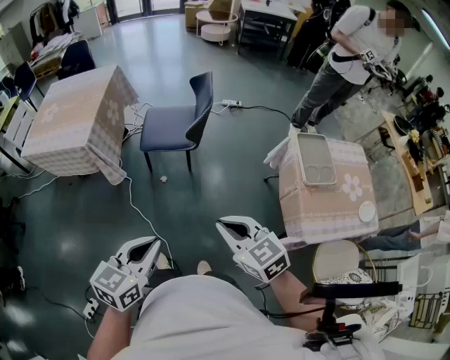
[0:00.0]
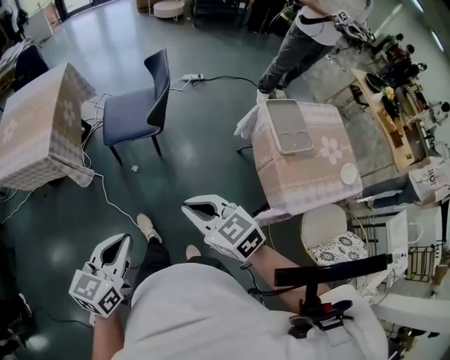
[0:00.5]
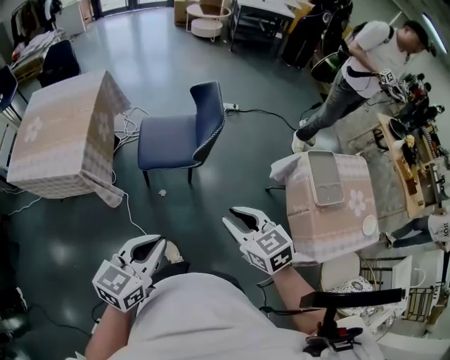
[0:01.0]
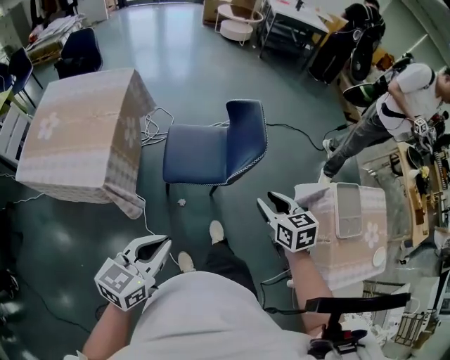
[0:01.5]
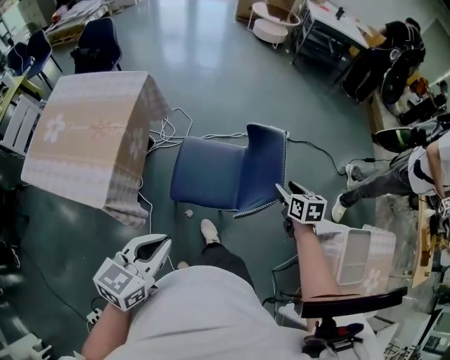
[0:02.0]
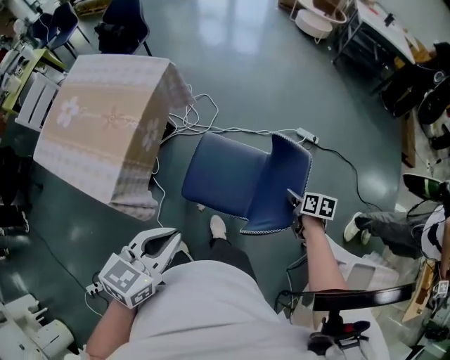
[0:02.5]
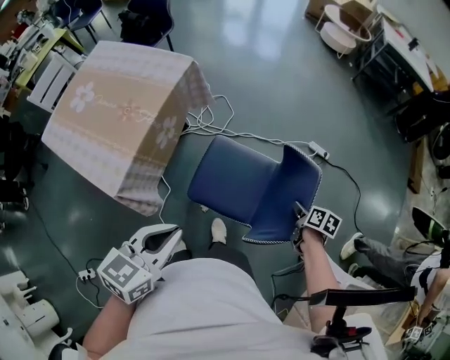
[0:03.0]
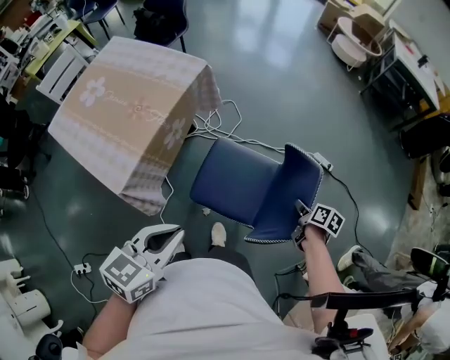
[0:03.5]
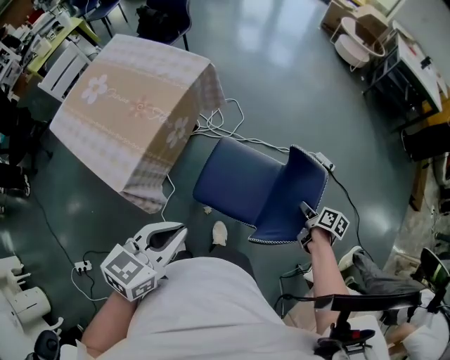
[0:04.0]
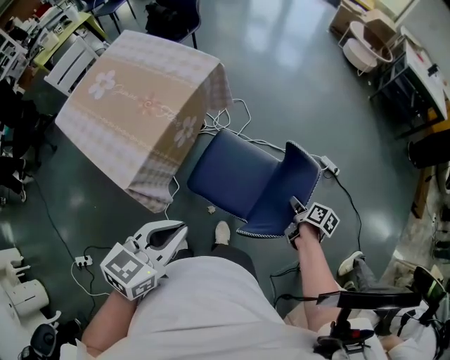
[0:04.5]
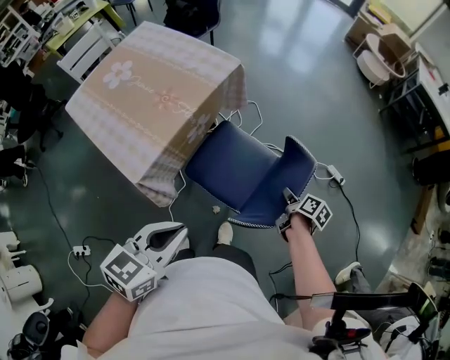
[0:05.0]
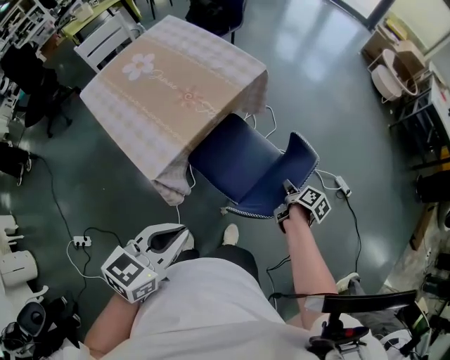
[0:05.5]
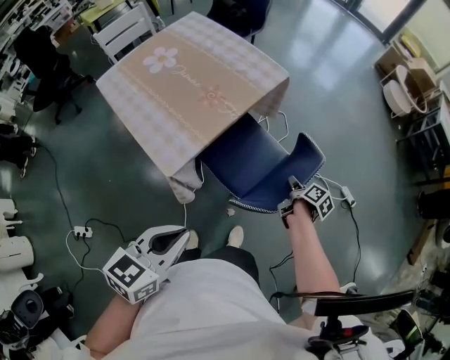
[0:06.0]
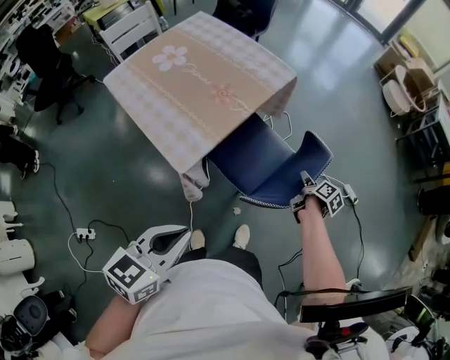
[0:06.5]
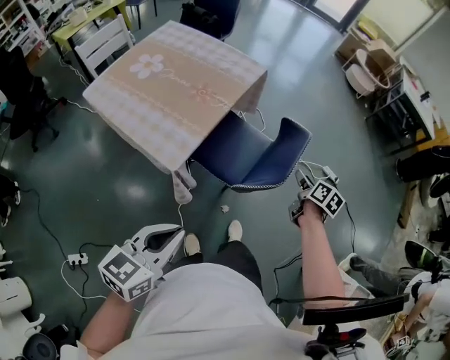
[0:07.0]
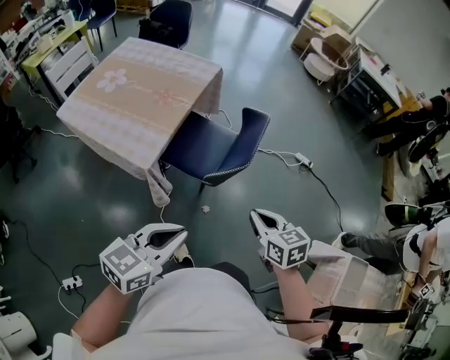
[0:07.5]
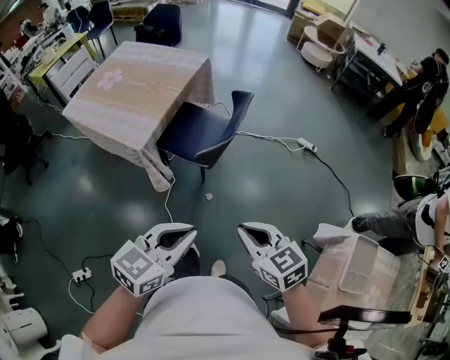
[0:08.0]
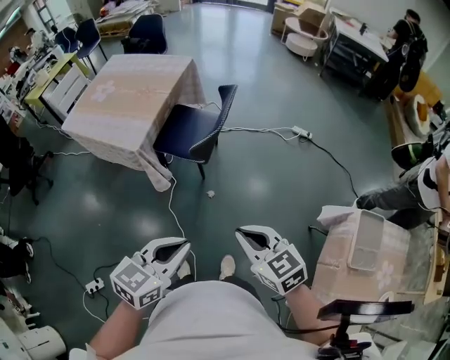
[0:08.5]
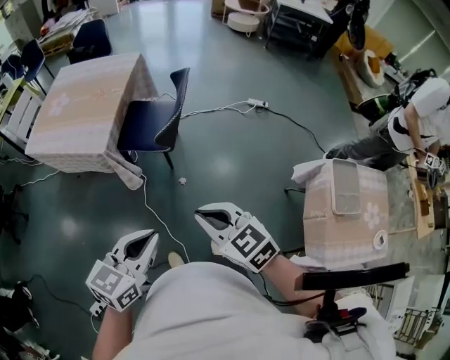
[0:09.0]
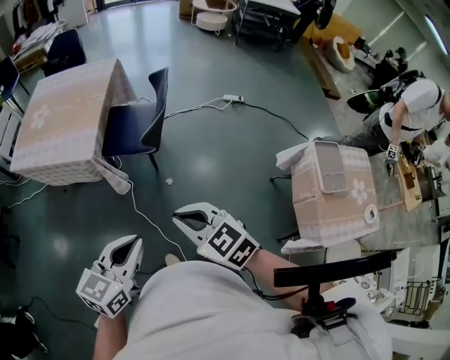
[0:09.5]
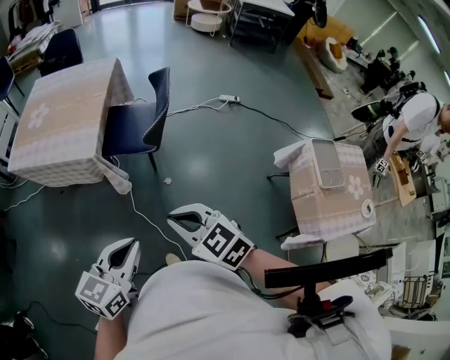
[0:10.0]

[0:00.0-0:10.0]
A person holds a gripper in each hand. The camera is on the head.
0.0 to 2.0 s: The pair of grippers is taken forward, about 50 cm. The right gripper swivels about 30 degrees, and opens up.
2.0 to 4.0 s: The left gripper is displaced forward by some 10 cm; the right gripper goes approximately 20 cm forward and downward, changes its angle by approximately 30 degrees, and closes its fingers.
4.0 to 6.0 s: The left gripper goes some 15 cm to the left. The right gripper travels to the left by about 30 cm.
6.0 to 8.0 s: The left gripper shifts approximately 25 cm backward and to the right, and changes its angle by about 30 degrees, while the right gripper moves backward and upward, roughly 60 cm, twists roughly 70 degrees counterclockwise, seen from behind, and opens and closes again.
8.0 to 10.0 s: The grippers both shift to the left and backward by about 20 cm.

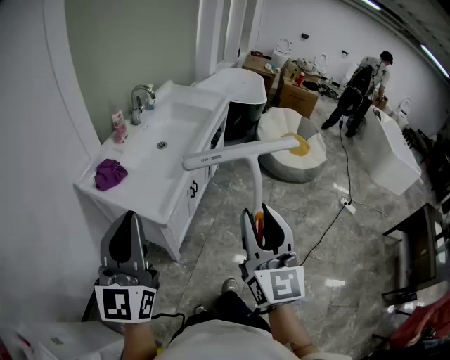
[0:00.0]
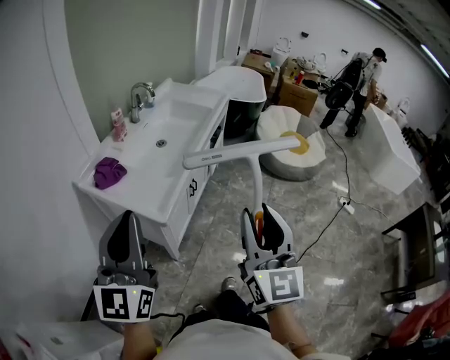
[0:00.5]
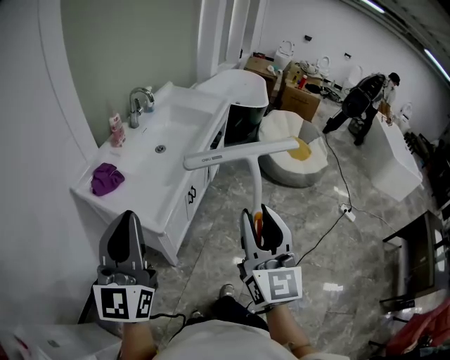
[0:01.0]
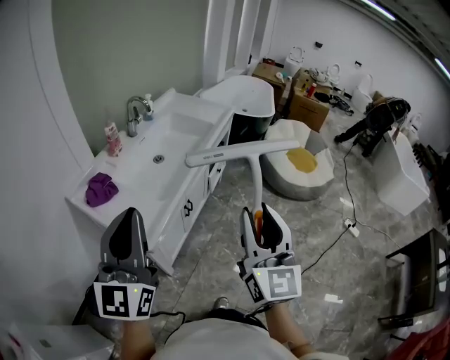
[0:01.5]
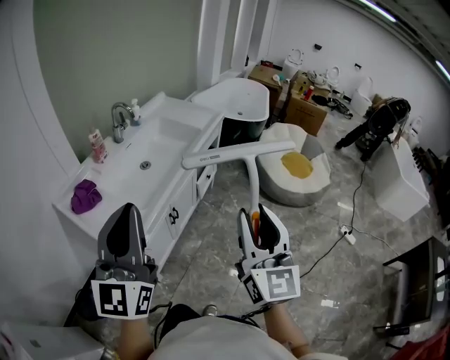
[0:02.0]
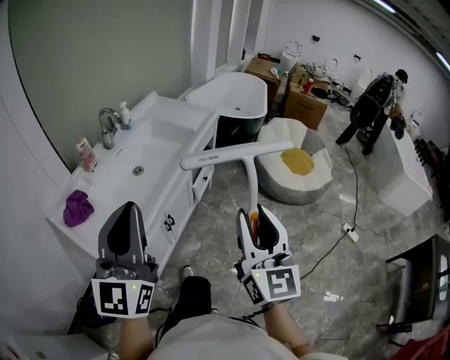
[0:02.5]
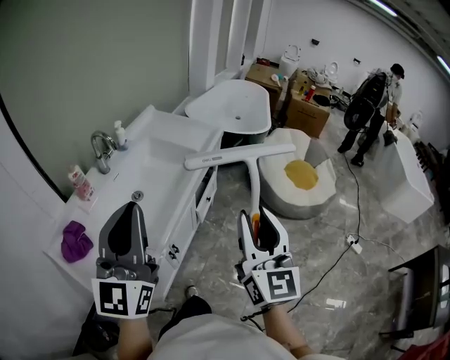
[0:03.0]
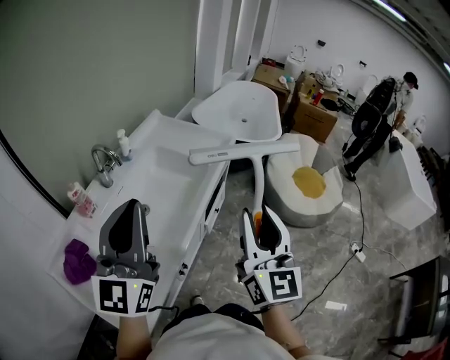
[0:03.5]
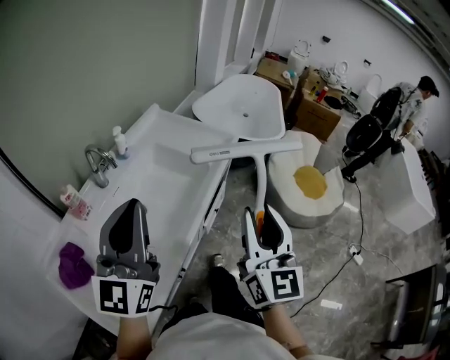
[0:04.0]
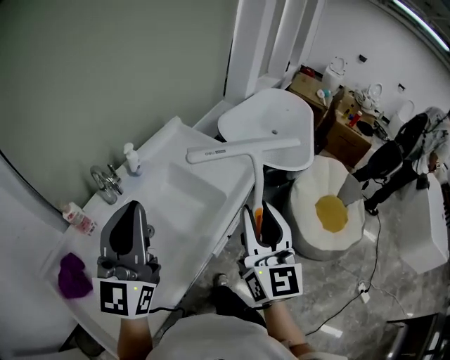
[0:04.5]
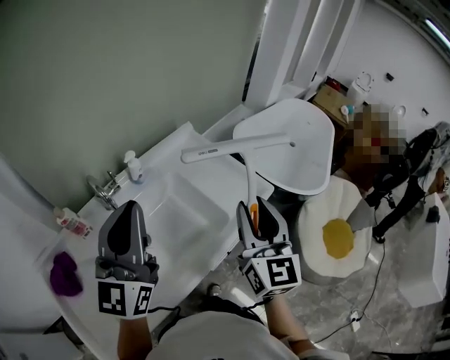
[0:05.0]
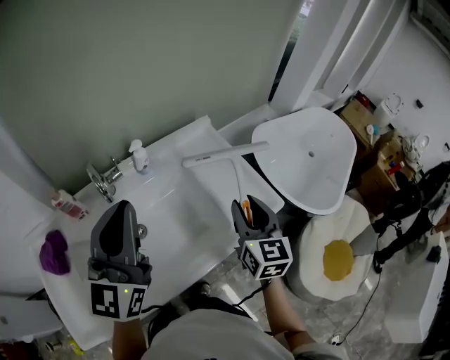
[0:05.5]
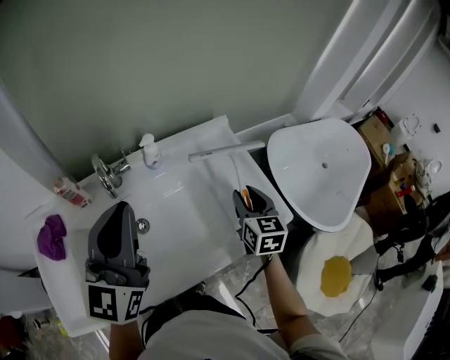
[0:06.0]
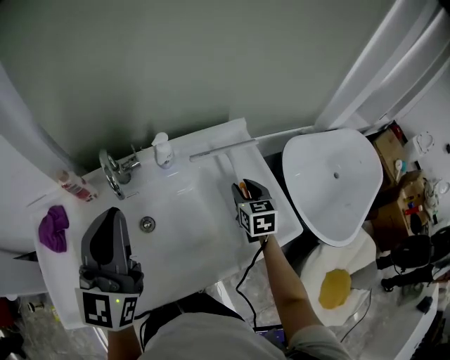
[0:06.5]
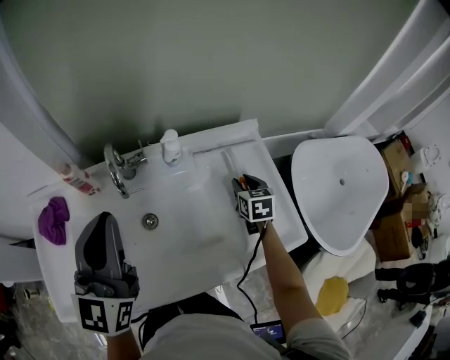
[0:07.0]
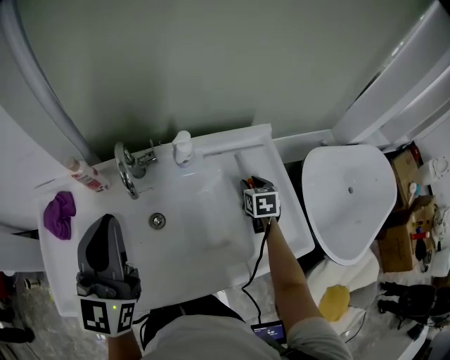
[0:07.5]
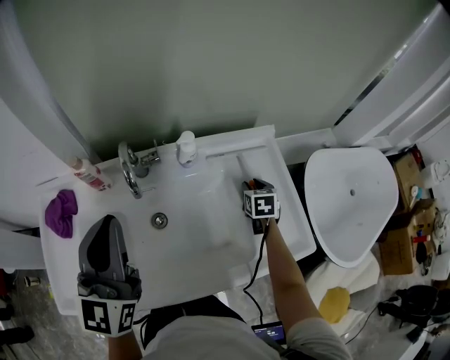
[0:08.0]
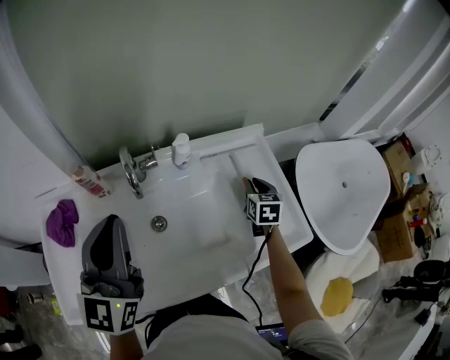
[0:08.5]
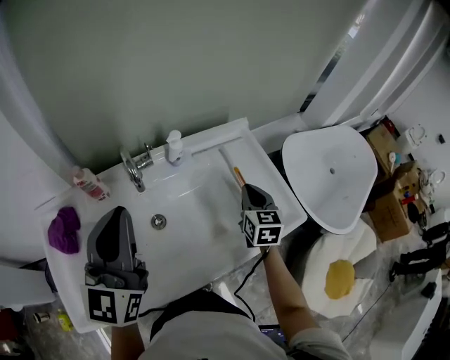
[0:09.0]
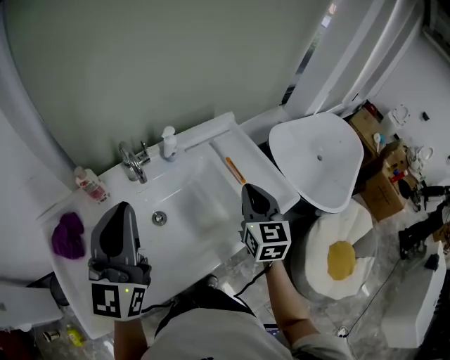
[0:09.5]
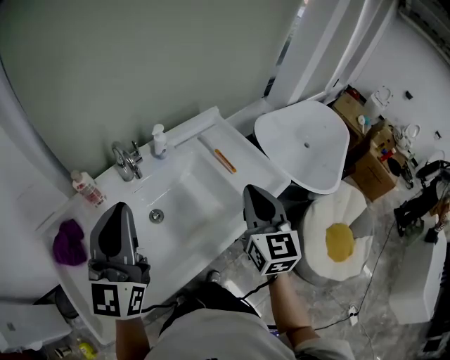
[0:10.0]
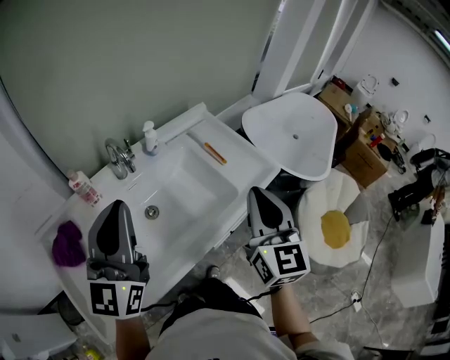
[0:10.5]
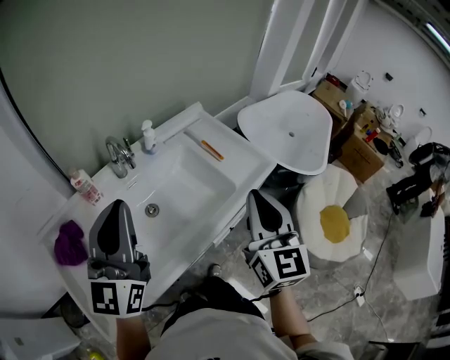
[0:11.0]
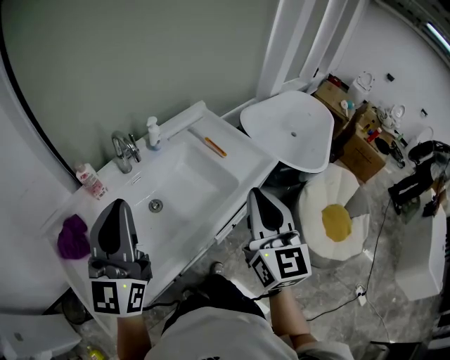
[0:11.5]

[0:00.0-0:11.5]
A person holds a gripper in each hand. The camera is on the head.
0.0 to 2.0 s: Both grippers move forward and to the right, some 20 cm.
2.0 to 4.0 s: Both grippers travel together forward, about 35 cm.
4.0 to 6.0 s: The right gripper ends up approximately 50 cm from where it was, and tilts its fingers approximately 30 degrees downward. The left gripper changes place by roughly 20 cm, and rotates some 40 degrees.
6.0 to 7.5 s: The right gripper shifts approximately 20 cm forward and downward, and swivels roughly 20 degrees. The left gripper is displaced to the left by roughly 5 cm.
7.5 to 9.5 s: The left gripper heads backward, covering roughly 5 cm. The right gripper travels backward and upward by about 30 cm, points its fingers about 30 degrees further upward, and closes its fingers.
9.5 to 11.5 s: The right gripper heads backward and upward, covering about 25 cm. The left gripper heads backward, covering roughly 10 cm.

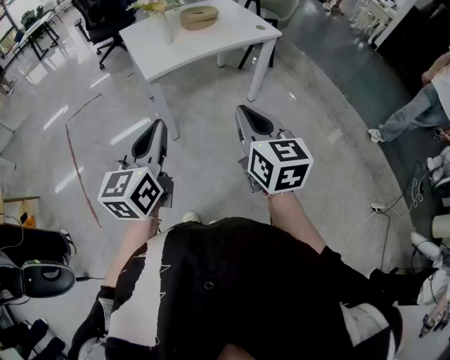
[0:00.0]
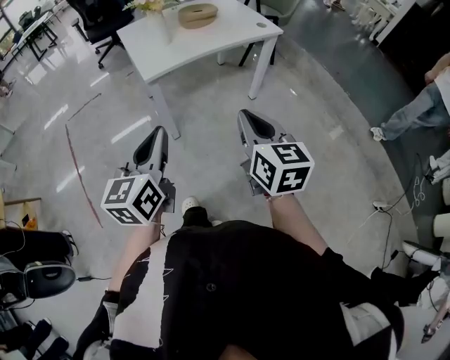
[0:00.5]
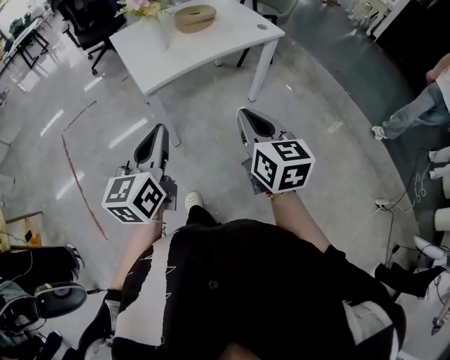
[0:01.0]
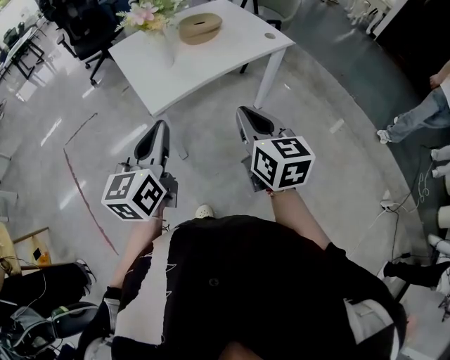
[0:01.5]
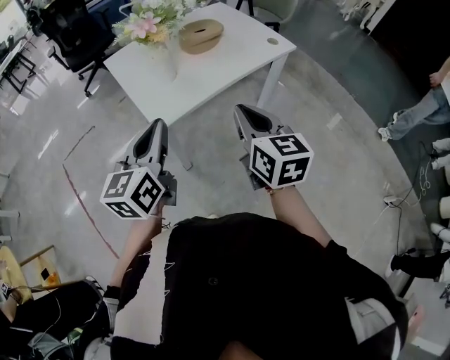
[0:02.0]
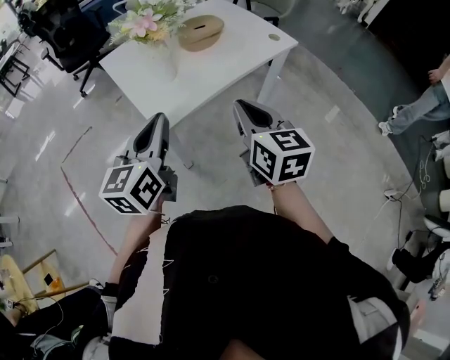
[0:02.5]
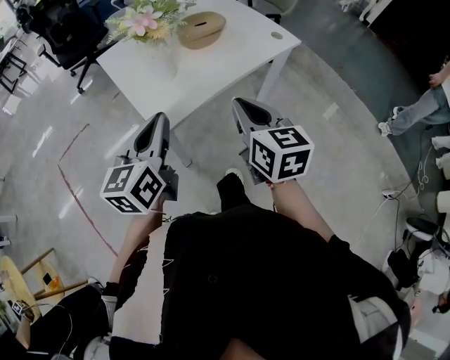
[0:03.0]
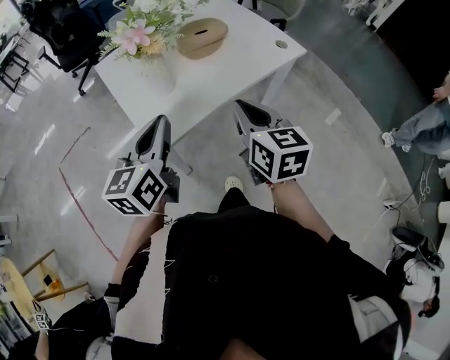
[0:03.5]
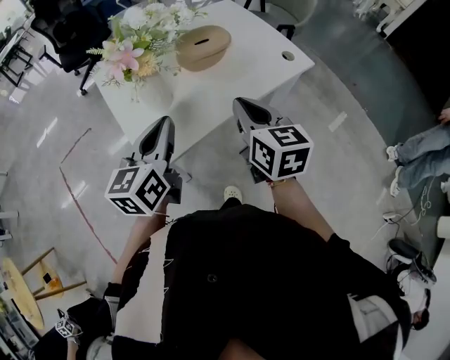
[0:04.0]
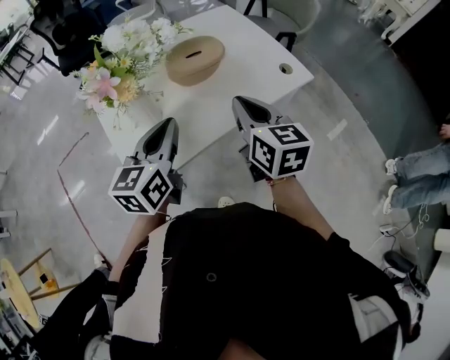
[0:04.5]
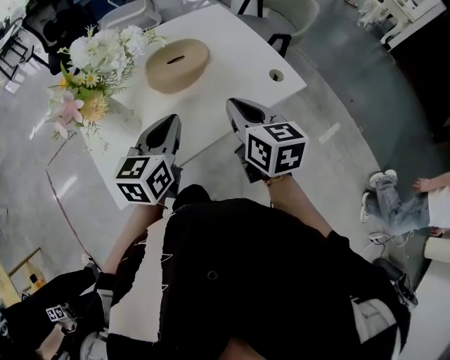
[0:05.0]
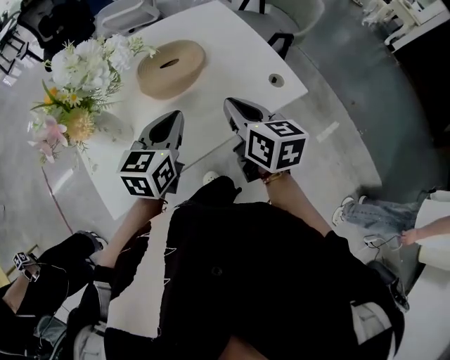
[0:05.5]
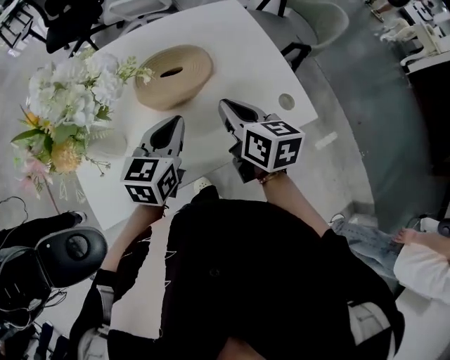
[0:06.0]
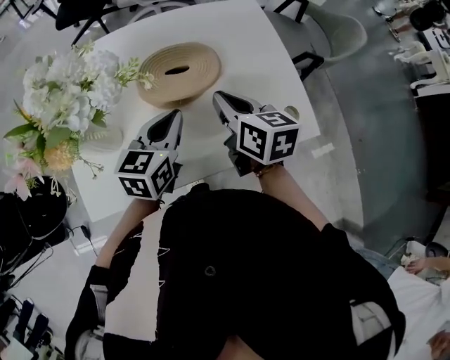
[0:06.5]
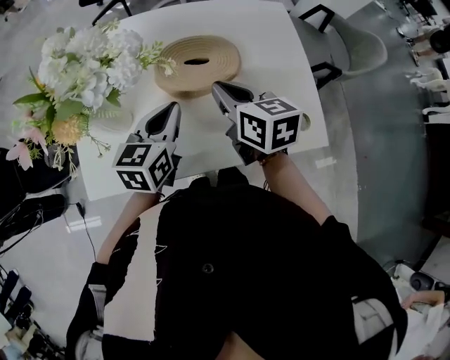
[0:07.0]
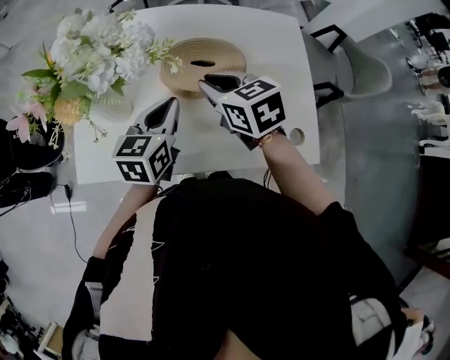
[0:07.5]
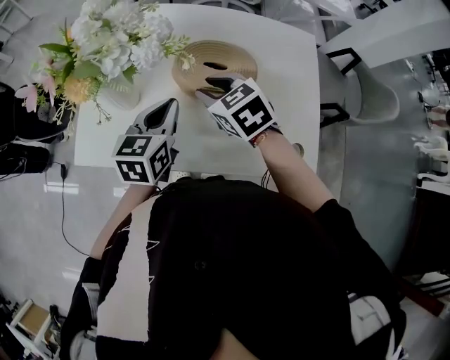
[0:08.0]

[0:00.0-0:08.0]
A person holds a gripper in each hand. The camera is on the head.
0.0 to 2.0 s: Both grippers move forward, about 25 cm.
2.0 to 4.0 s: The grippers both shift forward by about 20 cm.
4.0 to 6.0 s: The left gripper goes about 30 cm forward, to the right and downward; the right gripper shifts some 25 cm forward.
6.0 to 8.0 s: The right gripper changes place by roughly 15 cm, turns by about 70 degrees, and opens. The left gripper shifts by roughly 5 cm, and rotates approximately 30 degrees.
